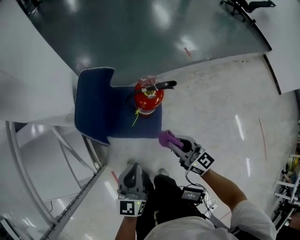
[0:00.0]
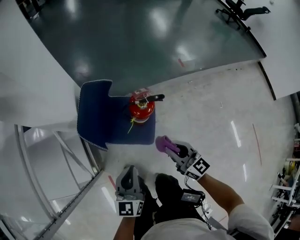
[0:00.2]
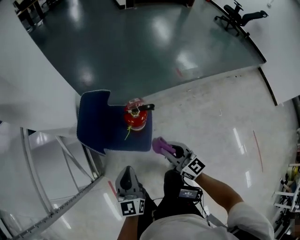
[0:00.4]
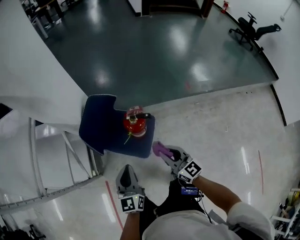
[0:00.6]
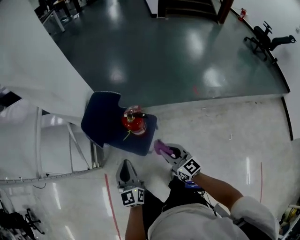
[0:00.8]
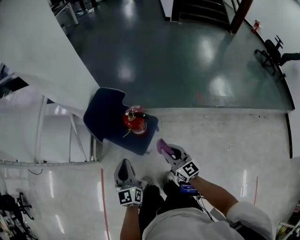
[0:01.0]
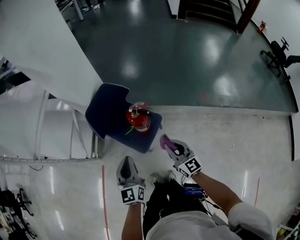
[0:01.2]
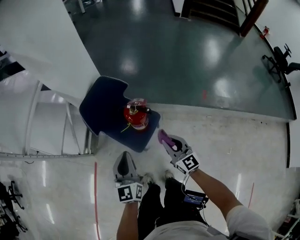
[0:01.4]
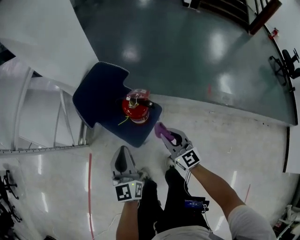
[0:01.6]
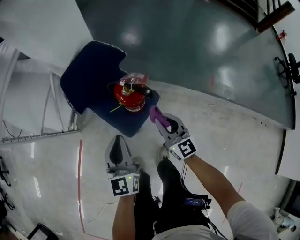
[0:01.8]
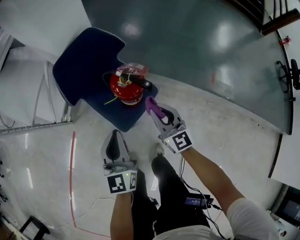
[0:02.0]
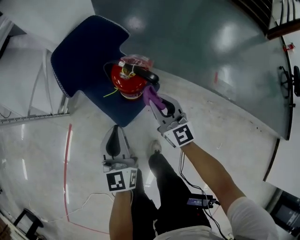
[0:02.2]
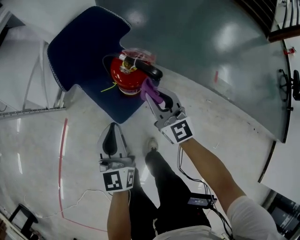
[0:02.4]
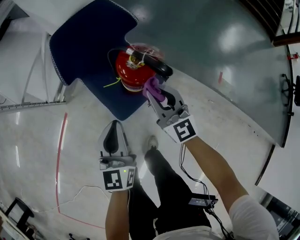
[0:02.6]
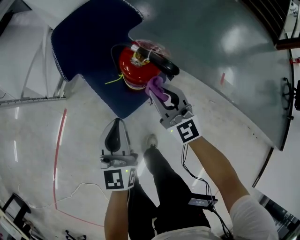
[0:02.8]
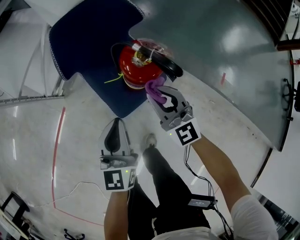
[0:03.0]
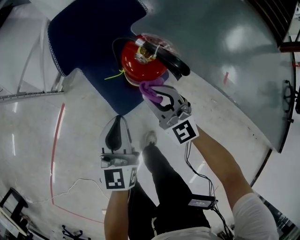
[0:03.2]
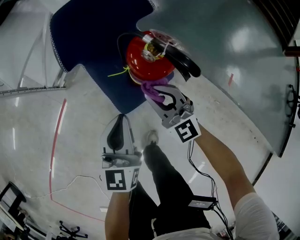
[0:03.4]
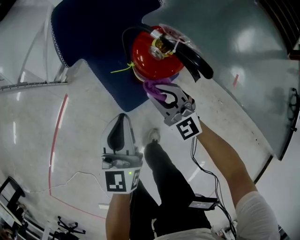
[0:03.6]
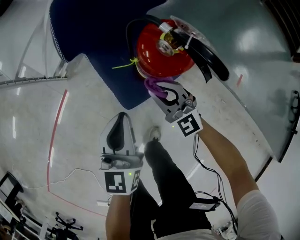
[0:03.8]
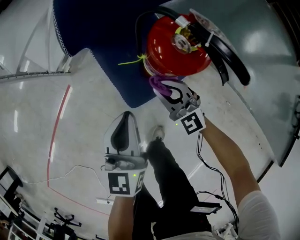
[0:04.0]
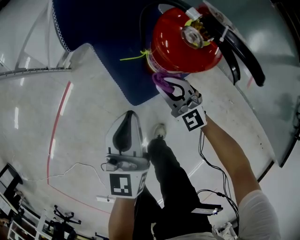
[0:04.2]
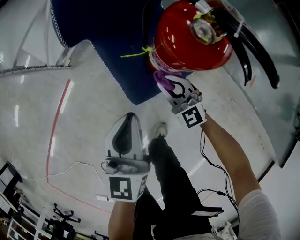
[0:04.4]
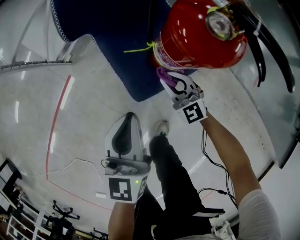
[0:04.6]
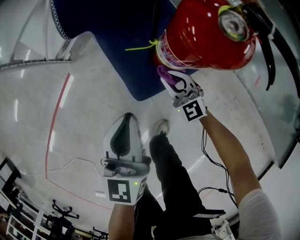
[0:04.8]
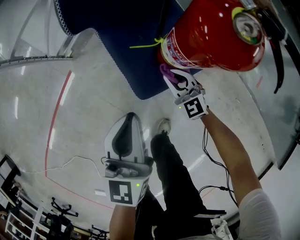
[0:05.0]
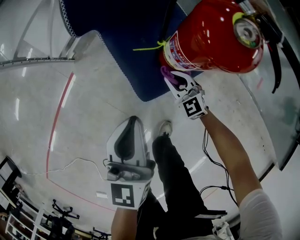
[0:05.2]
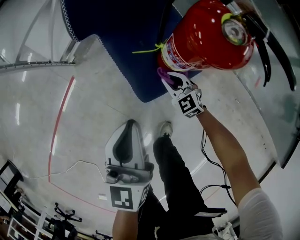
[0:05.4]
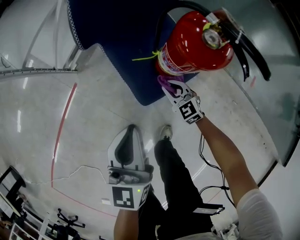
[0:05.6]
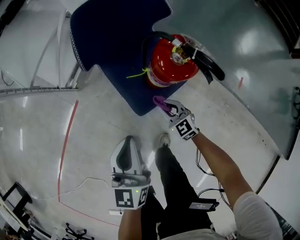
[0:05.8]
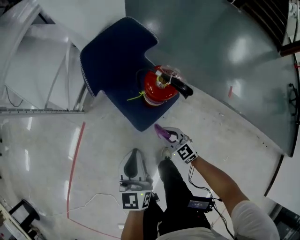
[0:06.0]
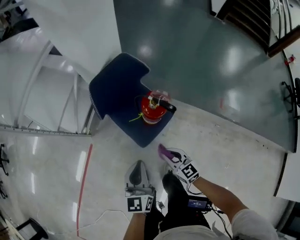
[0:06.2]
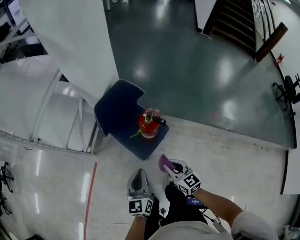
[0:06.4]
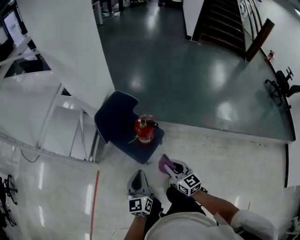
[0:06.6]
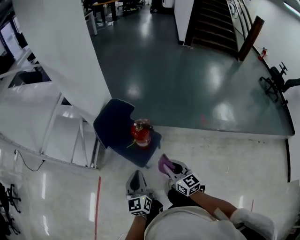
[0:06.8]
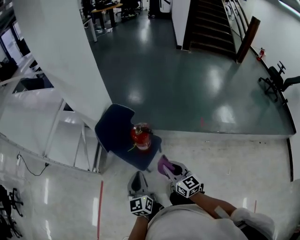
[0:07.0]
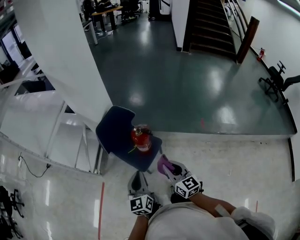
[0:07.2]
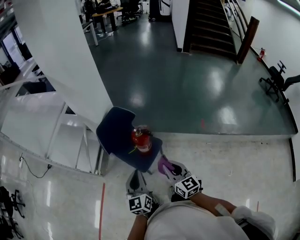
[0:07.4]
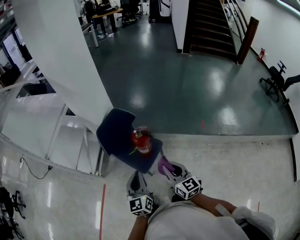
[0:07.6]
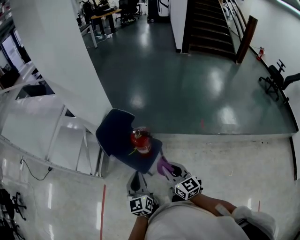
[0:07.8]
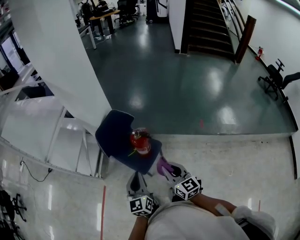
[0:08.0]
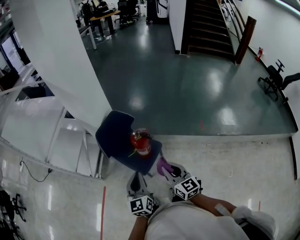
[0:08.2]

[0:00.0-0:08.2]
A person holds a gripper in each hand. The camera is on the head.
0:00.0 to 0:01.6: The right gripper moves about 10 cm upward and comes back, and swivels approximately 30 degrees. Meanwhile the left gripper moves roughly 15 cm, and rotates about 50 degrees.
0:01.6 to 0:03.2: The left gripper heads downward, covering roughly 15 cm; the right gripper shifts roughly 15 cm downward, forward and to the left, and changes its angle by approximately 30 degrees.
0:03.2 to 0:05.0: The left gripper shifts approximately 10 cm downward, while the right gripper is displaced downward by approximately 25 cm.
0:05.0 to 0:06.6: The left gripper shifts approximately 25 cm upward, while the right gripper goes approximately 50 cm upward and backward, and rotates roughly 50 degrees.
0:06.6 to 0:08.2: The grippers both shift upward by roughly 5 cm.

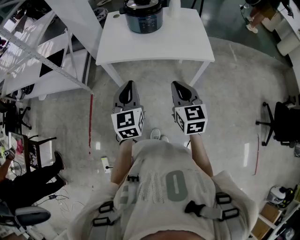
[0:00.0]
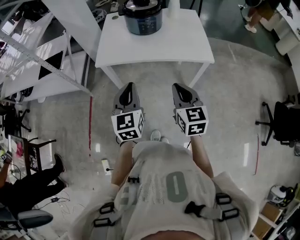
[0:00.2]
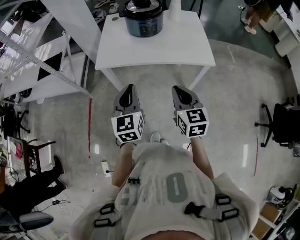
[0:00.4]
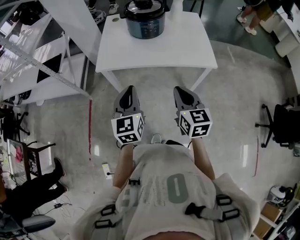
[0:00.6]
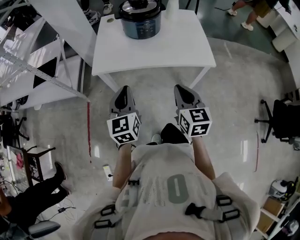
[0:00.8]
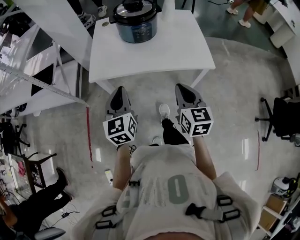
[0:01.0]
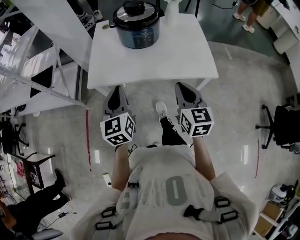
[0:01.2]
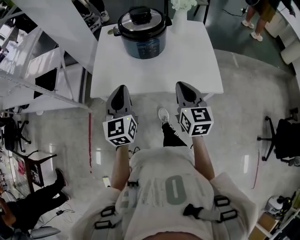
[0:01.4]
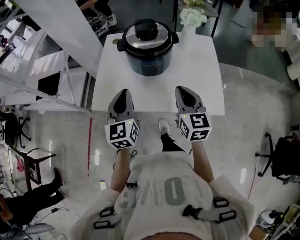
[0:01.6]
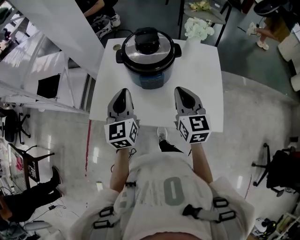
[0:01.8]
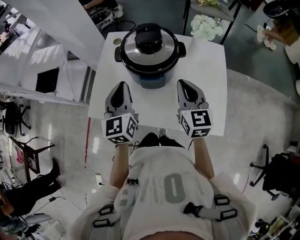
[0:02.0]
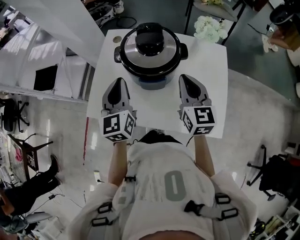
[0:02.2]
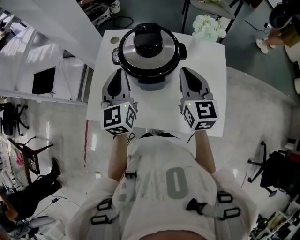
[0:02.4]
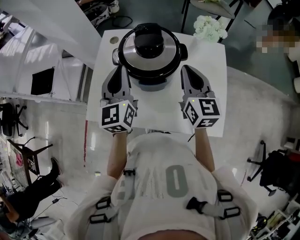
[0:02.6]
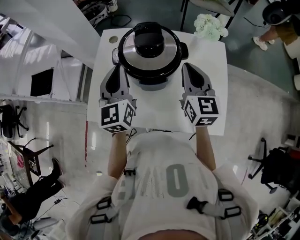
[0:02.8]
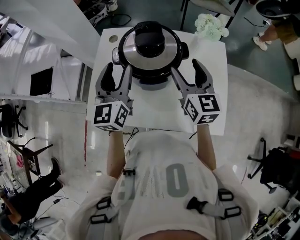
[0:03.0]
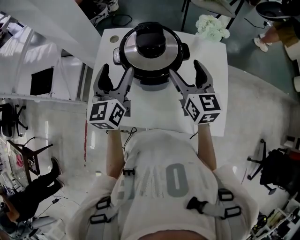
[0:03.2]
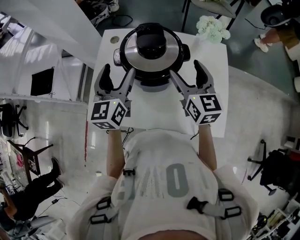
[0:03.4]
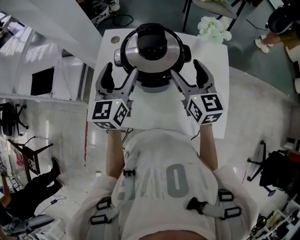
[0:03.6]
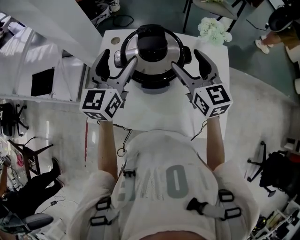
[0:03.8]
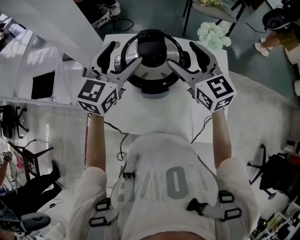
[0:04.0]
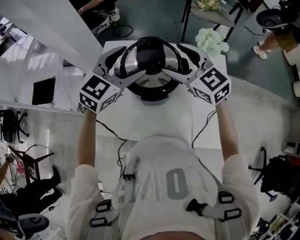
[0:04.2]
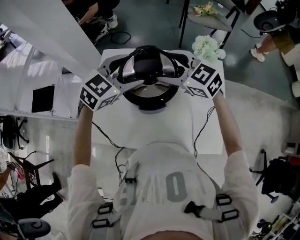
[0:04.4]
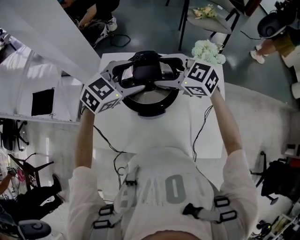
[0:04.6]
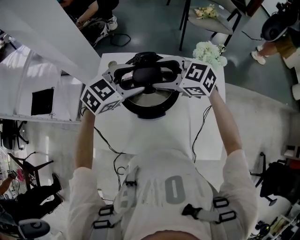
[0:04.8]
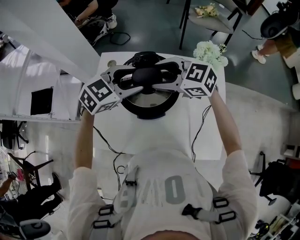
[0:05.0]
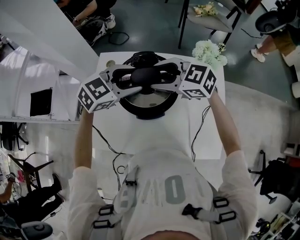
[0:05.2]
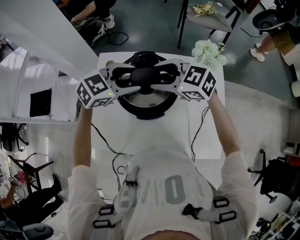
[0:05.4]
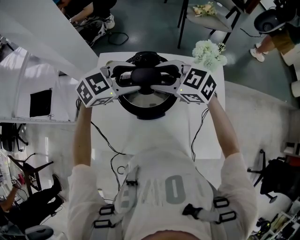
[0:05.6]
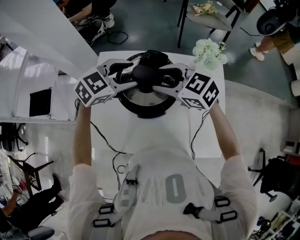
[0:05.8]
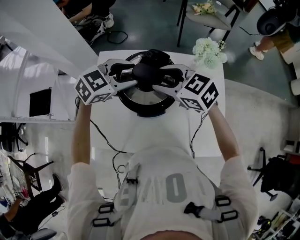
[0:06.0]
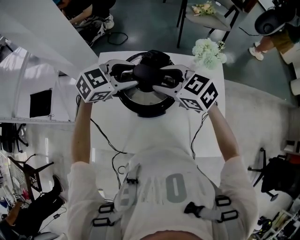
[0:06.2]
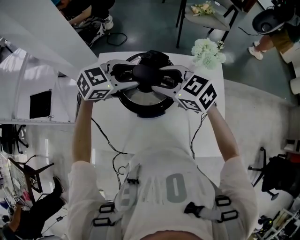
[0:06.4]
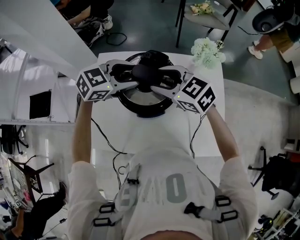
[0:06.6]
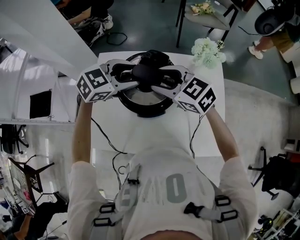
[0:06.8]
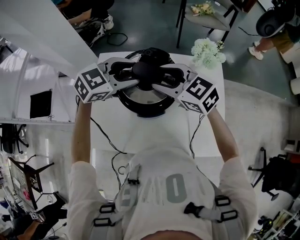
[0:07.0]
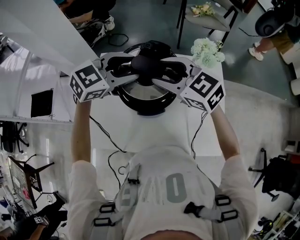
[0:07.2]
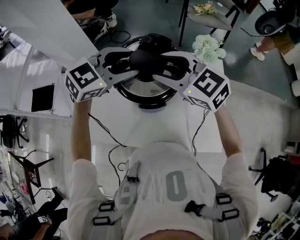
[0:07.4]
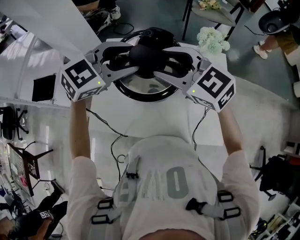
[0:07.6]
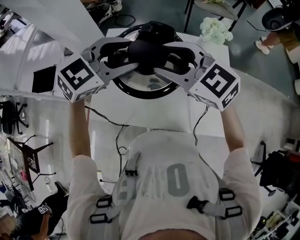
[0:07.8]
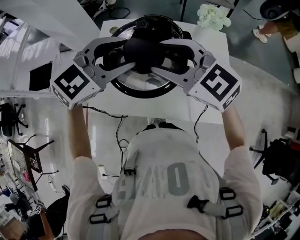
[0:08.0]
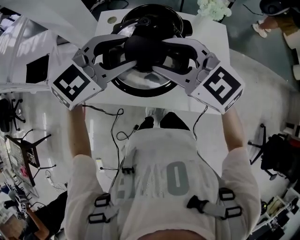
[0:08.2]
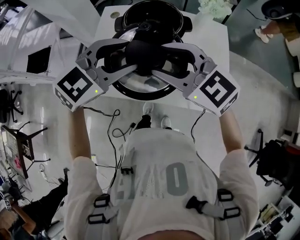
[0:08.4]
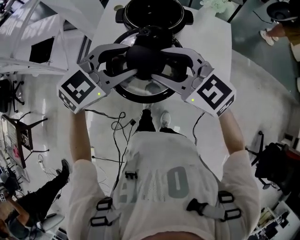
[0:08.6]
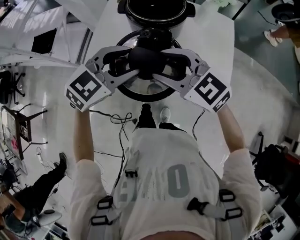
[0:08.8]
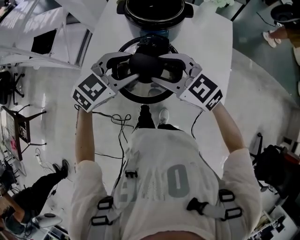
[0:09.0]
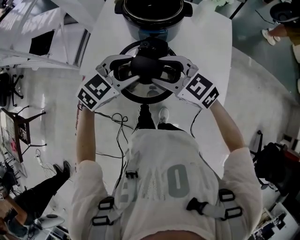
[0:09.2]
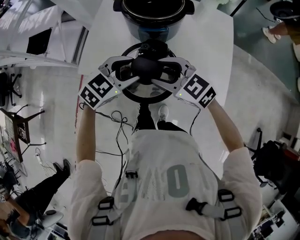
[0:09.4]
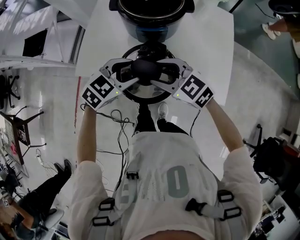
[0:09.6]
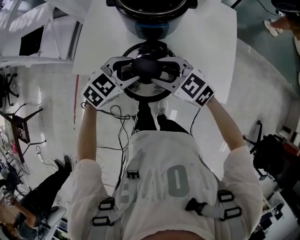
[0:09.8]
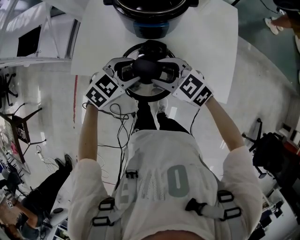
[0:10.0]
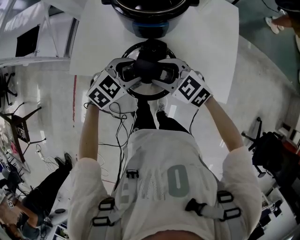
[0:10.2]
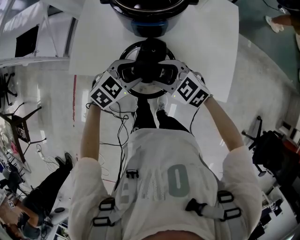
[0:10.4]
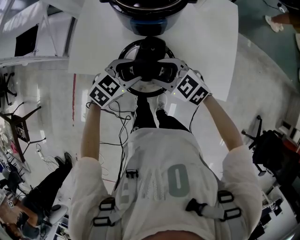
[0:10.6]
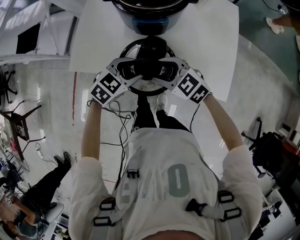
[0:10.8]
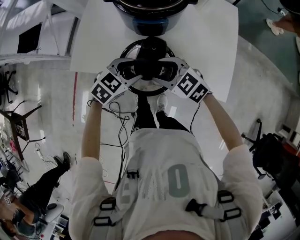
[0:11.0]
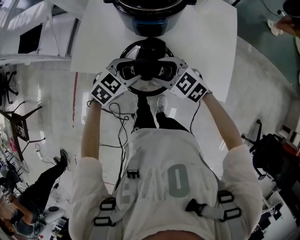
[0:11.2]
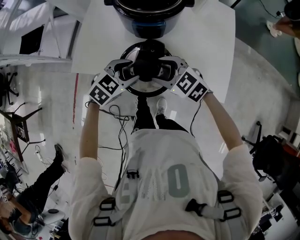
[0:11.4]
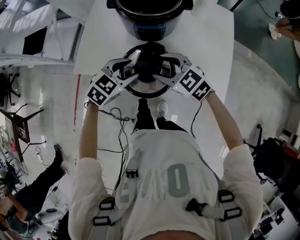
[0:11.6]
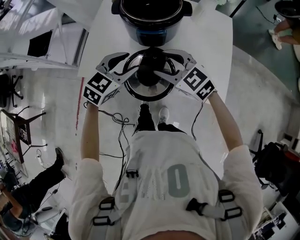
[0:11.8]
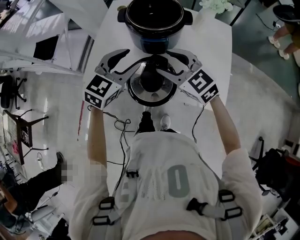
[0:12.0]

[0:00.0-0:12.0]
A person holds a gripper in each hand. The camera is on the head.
0:00.0 to 0:01.6: Both grippers travel together forward, approximately 30 cm.
0:01.6 to 0:03.0: The two grippers go about 20 cm forward. The right gripper opens up, while the left gripper opens its fingers.
0:03.0 to 0:04.4: The left gripper travels to the right and forward by about 10 cm, changes its angle by some 60 degrees, and opens its fingers. Meanwhile the right gripper moves forward and to the left, approximately 10 cm, and swivels some 50 degrees.
0:04.4 to 0:06.0: The left gripper closes up. Meanwhile the right gripper closes.
0:06.0 to 0:07.6: The grippers both shift upward by about 10 cm.
0:07.6 to 0:09.0: The grippers both shift backward and downward by some 25 cm.
0:09.0 to 0:10.4: The two grippers go about 15 cm downward.
0:10.4 to 0:12.0: The two grippers go approximately 15 cm upward. The left gripper swivels about 30 degrees.

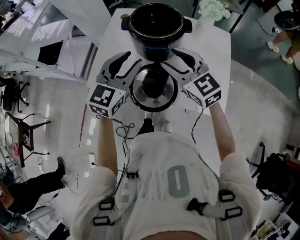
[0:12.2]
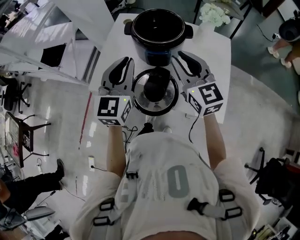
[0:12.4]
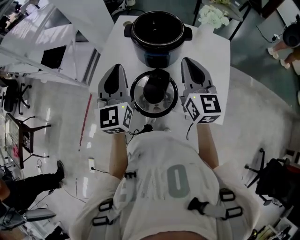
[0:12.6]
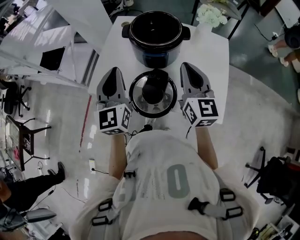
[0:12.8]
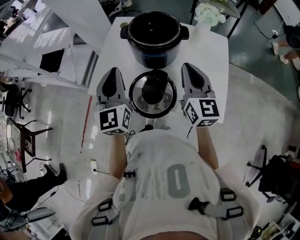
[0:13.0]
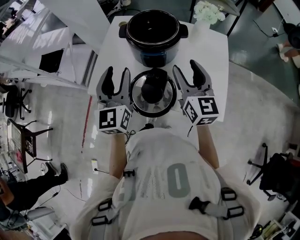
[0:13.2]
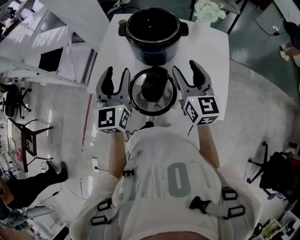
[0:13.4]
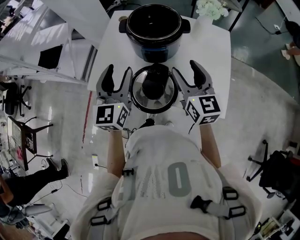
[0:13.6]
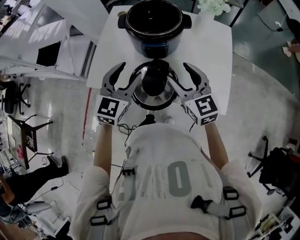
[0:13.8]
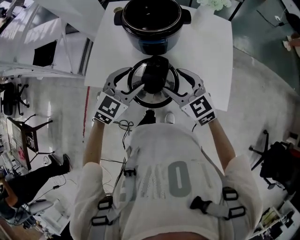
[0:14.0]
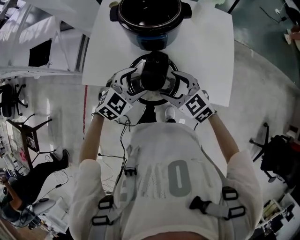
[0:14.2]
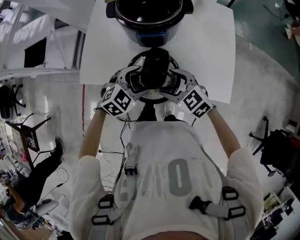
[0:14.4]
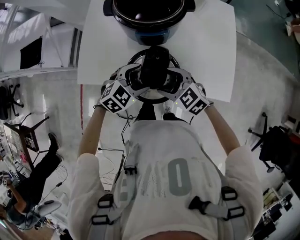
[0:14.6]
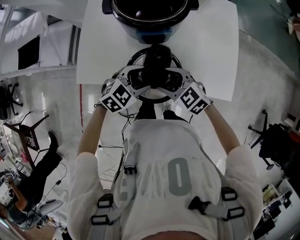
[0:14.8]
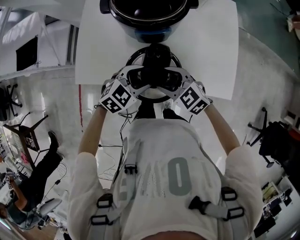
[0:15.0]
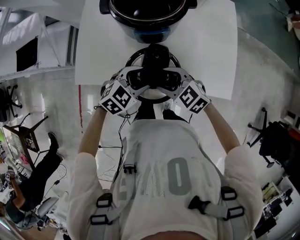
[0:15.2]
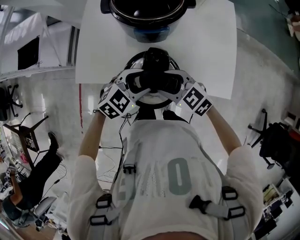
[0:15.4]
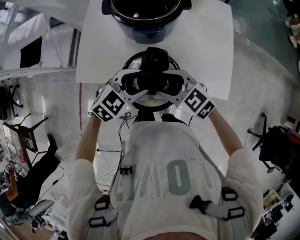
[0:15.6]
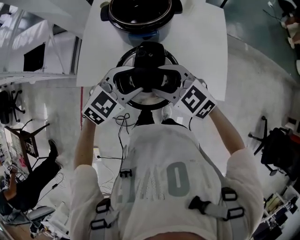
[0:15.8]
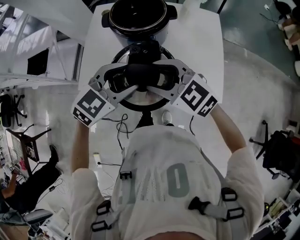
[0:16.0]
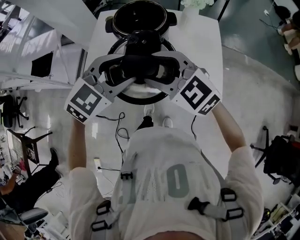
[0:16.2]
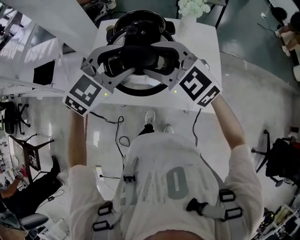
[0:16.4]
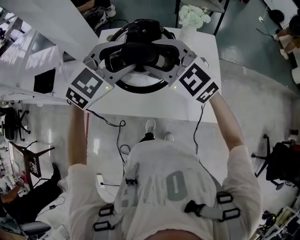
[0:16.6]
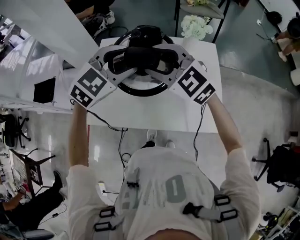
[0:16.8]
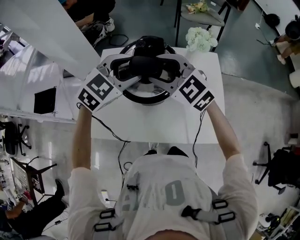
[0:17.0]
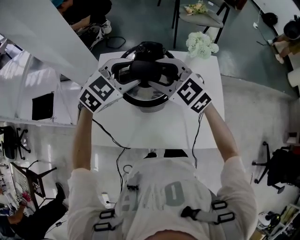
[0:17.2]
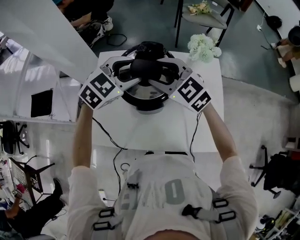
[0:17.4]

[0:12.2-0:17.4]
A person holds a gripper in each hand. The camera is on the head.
0:12.2 to 0:14.0: The left gripper is displaced downward by roughly 10 cm, changes its angle by some 20 degrees, and closes and opens again, while the right gripper is displaced downward and backward by some 10 cm, and closes and opens again.
0:14.0 to 0:15.6: The left gripper rotates approximately 20 degrees.
0:15.6 to 0:17.4: The left gripper moves some 35 cm. Meanwhile the right gripper moves approximately 35 cm, and rotates about 20 degrees.
